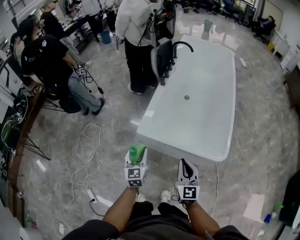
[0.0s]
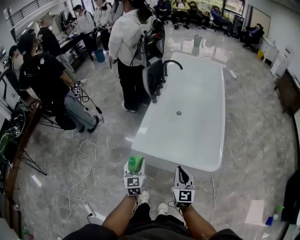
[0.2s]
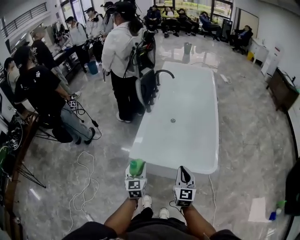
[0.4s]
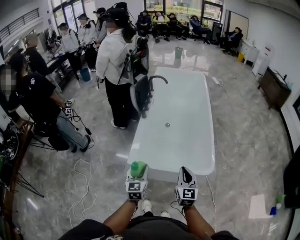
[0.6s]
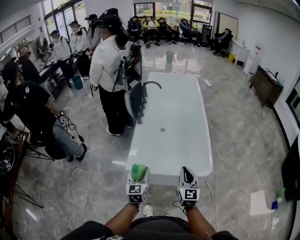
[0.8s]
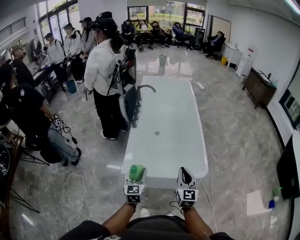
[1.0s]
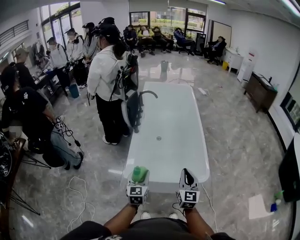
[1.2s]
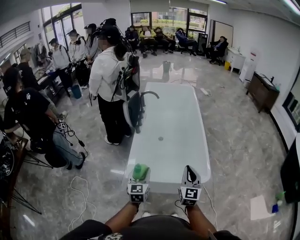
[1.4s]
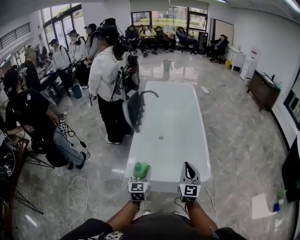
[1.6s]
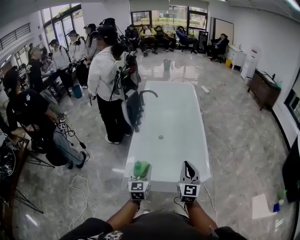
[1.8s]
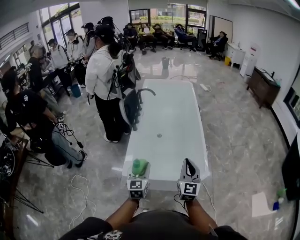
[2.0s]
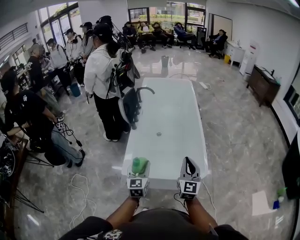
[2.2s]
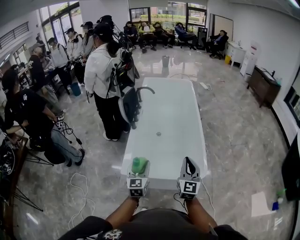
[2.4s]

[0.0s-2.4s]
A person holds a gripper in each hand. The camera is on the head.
0.0s to 1.2s: The right gripper moves upward and to the right, about 10 cm, and rotates some 30 degrees; the left gripper travels upward, to the right and forward by approximately 15 cm, and changes its angle by about 20 degrees.
1.2s to 2.4s: Both grippers move to the right, roughly 5 cm.

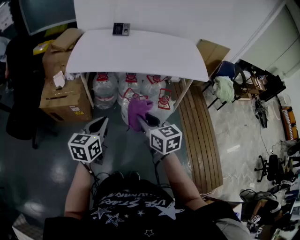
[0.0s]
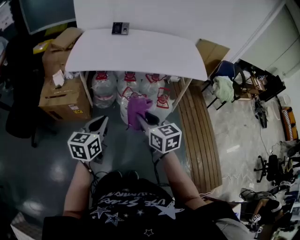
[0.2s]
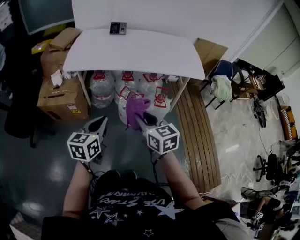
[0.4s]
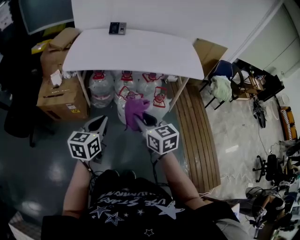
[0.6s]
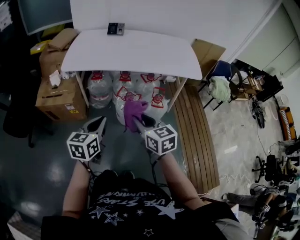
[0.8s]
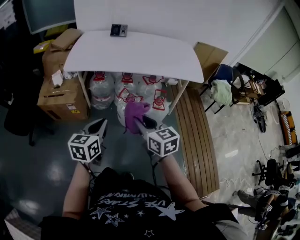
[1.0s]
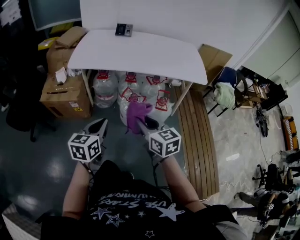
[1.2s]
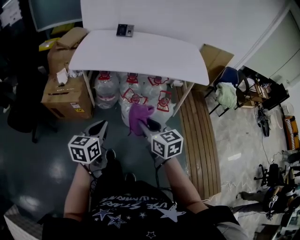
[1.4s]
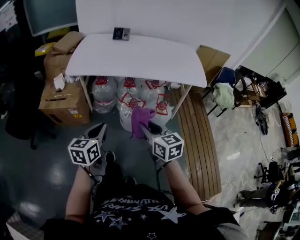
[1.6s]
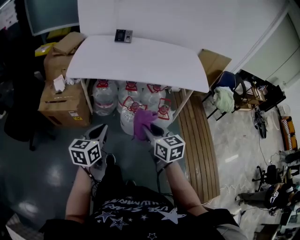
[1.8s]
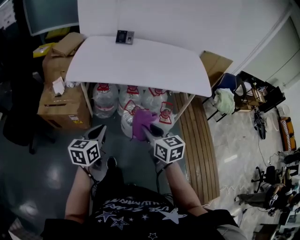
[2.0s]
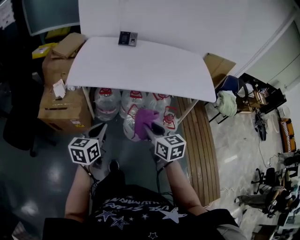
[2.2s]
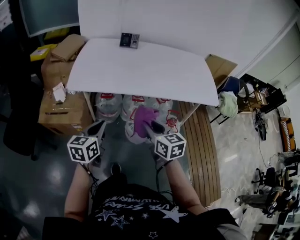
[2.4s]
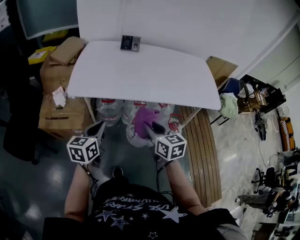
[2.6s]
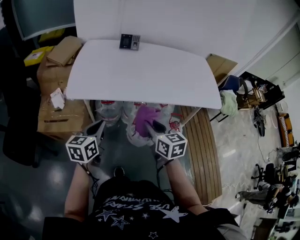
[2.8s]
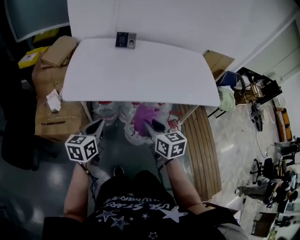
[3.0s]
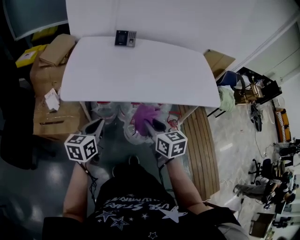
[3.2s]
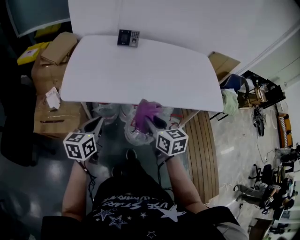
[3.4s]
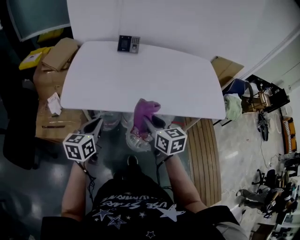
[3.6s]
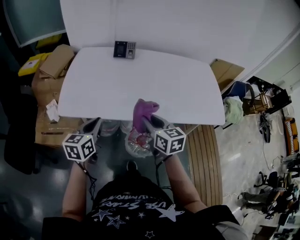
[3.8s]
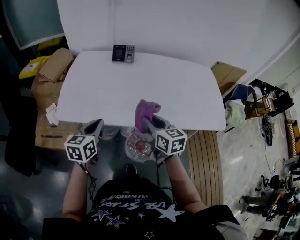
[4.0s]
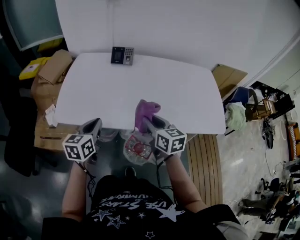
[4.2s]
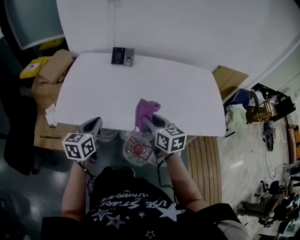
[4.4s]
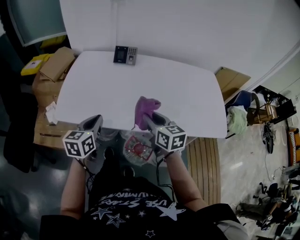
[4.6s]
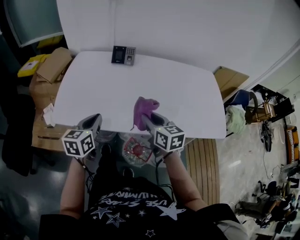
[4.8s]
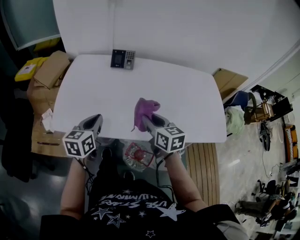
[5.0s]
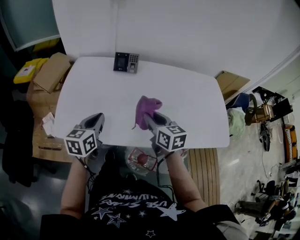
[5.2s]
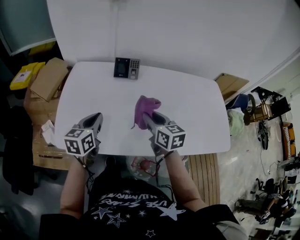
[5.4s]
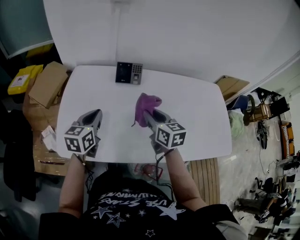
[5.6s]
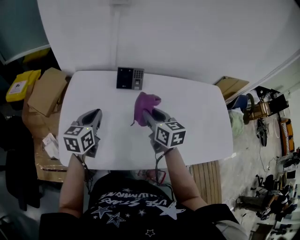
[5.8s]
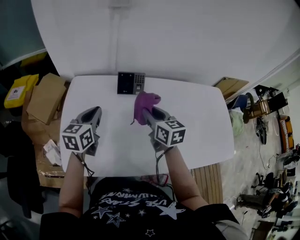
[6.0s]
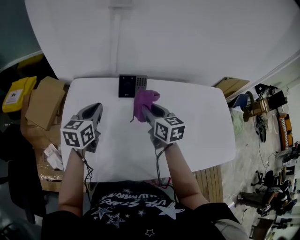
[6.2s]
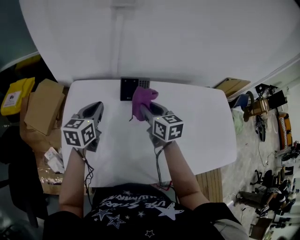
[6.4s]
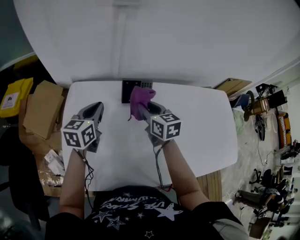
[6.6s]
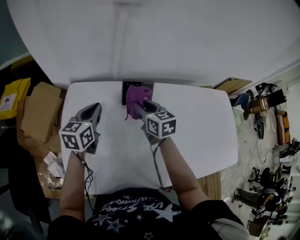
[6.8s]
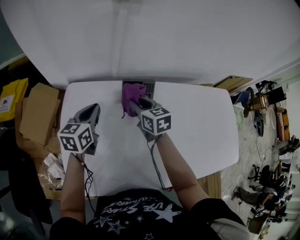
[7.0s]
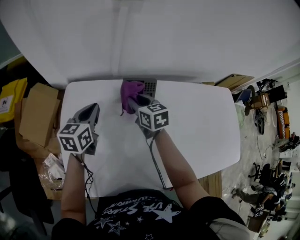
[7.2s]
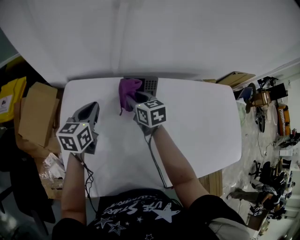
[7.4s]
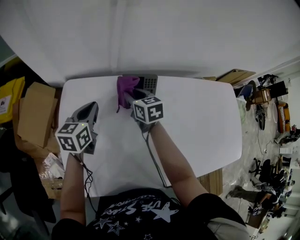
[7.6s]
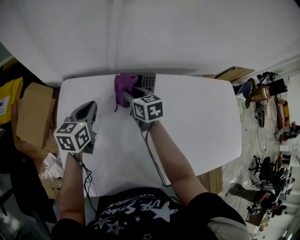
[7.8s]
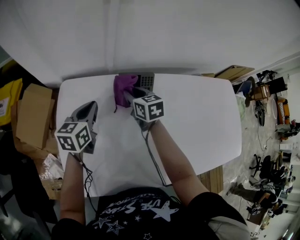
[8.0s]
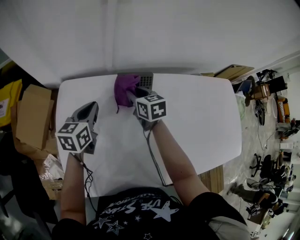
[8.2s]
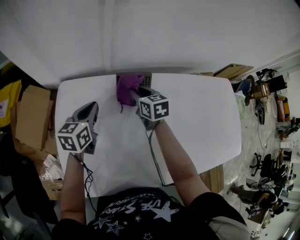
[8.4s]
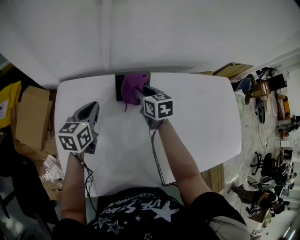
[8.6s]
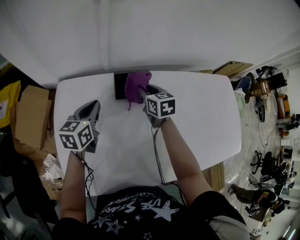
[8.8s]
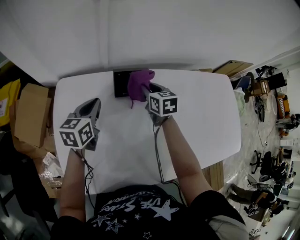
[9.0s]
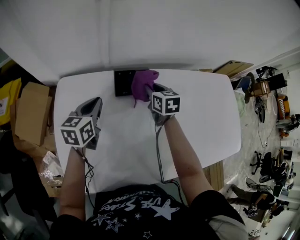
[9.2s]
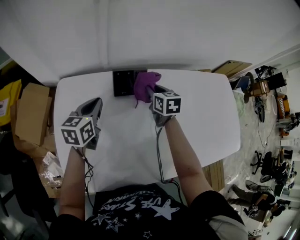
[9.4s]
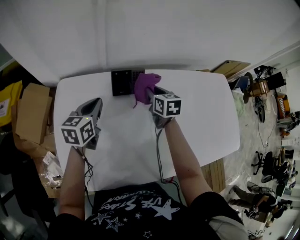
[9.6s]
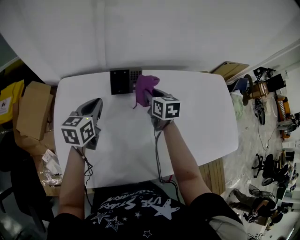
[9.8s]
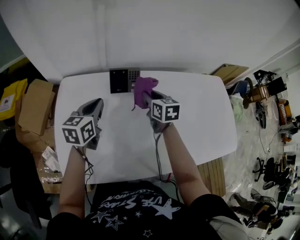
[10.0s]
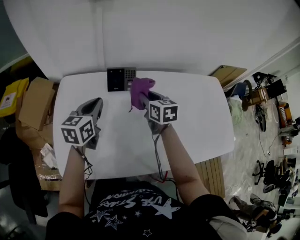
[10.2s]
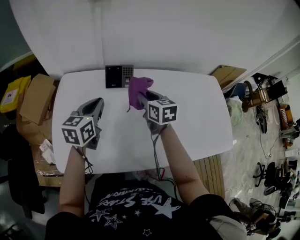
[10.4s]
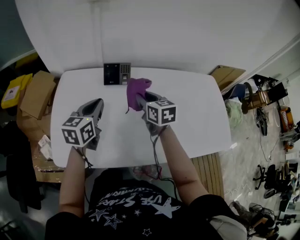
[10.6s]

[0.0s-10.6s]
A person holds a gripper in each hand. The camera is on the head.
0.0s to 1.6s: The grippers stay close to where they were, moving slightly.
1.6s to 3.0s: The right gripper shifts approximately 25 cm forward. Meanwhile the left gripper shifts about 30 cm forward and to the left.
3.0s to 4.6s: The two grippers go about 20 cm forward and to the right.
4.6s to 6.0s: Both grippers travel together forward, approximately 30 cm.
6.0s to 7.6s: The left gripper goes roughly 15 cm forward and downward. Meanwhile the right gripper heads forward, downward and to the left, covering some 25 cm.
7.6s to 9.0s: The right gripper is displaced to the right by approximately 10 cm. The left gripper goes some 5 cm to the right.
9.0s to 10.6s: The right gripper moves backward, upward and to the right, about 20 cm. Meanwhile the left gripper is displaced backward, to the right and upward by approximately 20 cm.

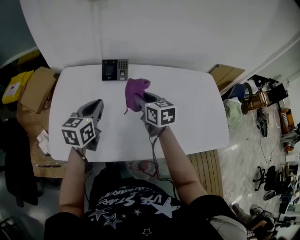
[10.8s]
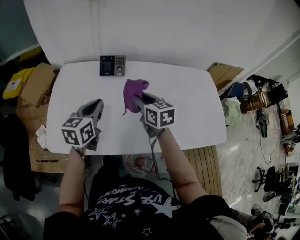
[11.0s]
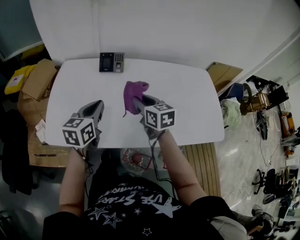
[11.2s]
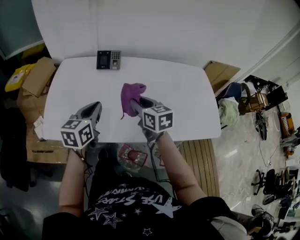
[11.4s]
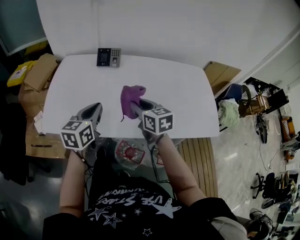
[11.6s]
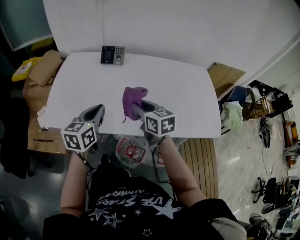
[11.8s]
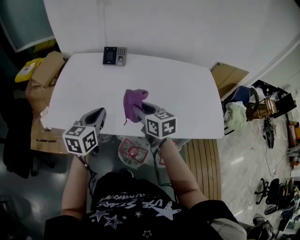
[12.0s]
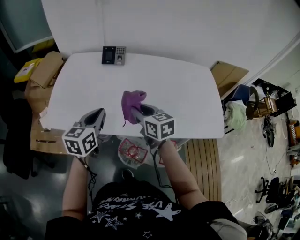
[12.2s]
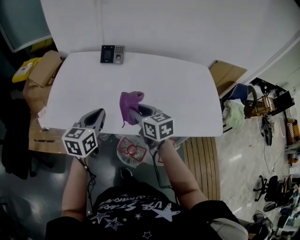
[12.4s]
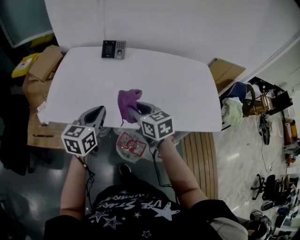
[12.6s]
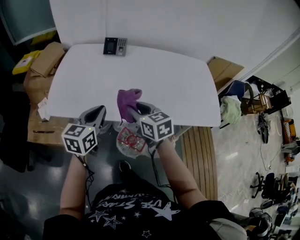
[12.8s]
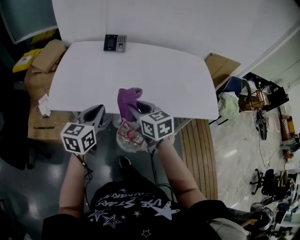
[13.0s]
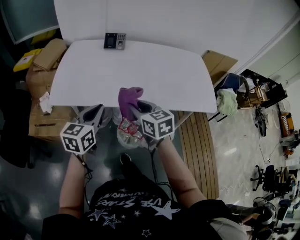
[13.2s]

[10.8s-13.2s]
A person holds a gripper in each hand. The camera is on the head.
10.8s to 12.0s: The grippers both shift backward by roughly 20 cm.
12.0s to 13.2s: The left gripper shifts some 15 cm backward, while the right gripper goes about 15 cm backward and to the left.

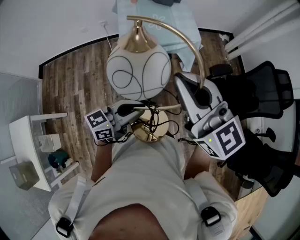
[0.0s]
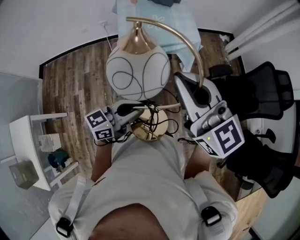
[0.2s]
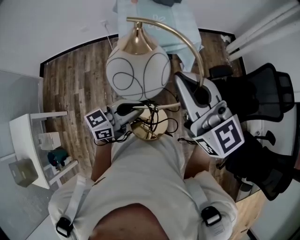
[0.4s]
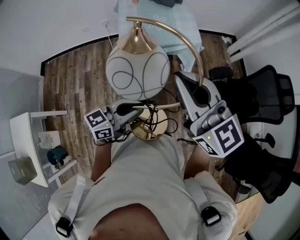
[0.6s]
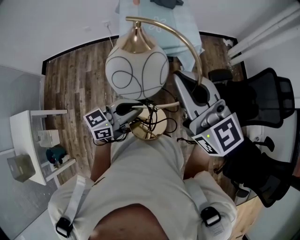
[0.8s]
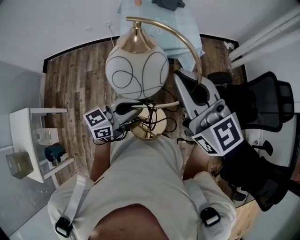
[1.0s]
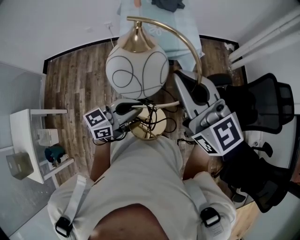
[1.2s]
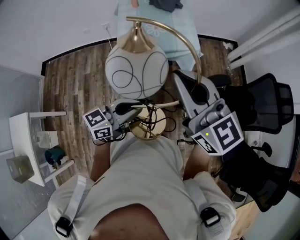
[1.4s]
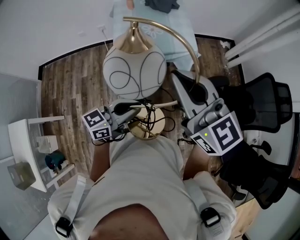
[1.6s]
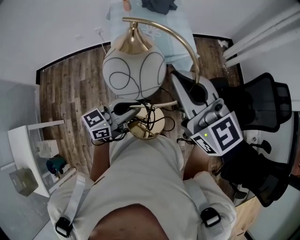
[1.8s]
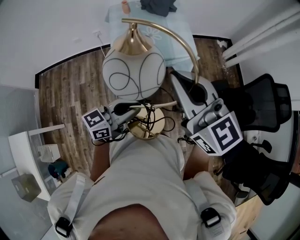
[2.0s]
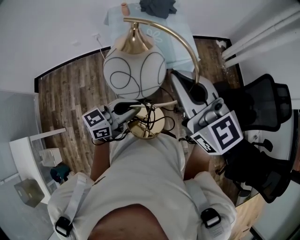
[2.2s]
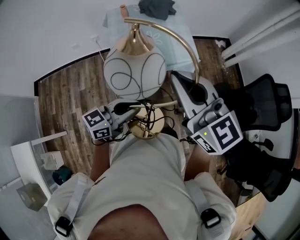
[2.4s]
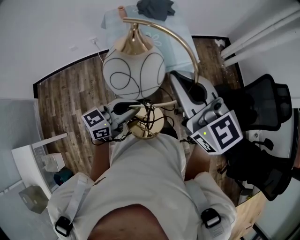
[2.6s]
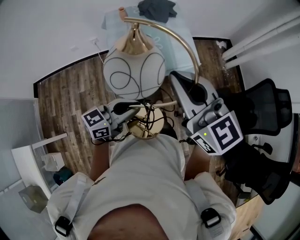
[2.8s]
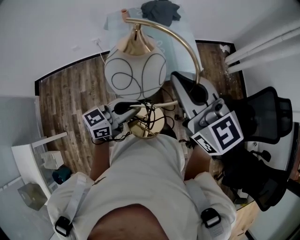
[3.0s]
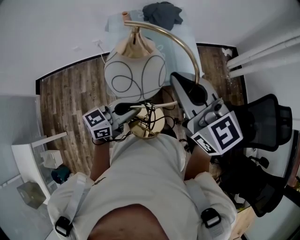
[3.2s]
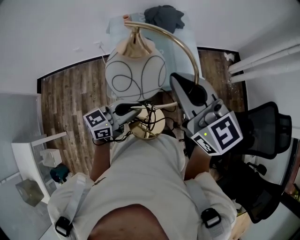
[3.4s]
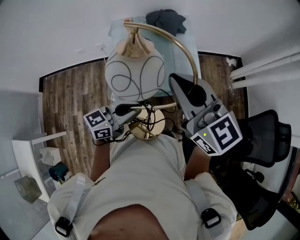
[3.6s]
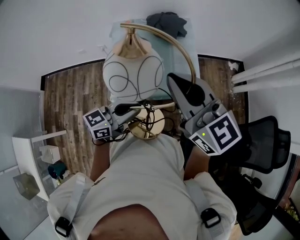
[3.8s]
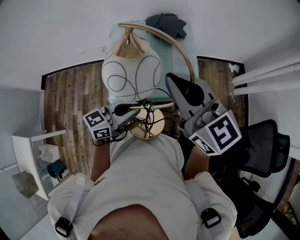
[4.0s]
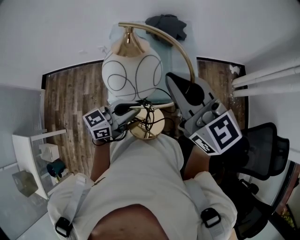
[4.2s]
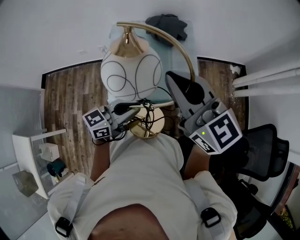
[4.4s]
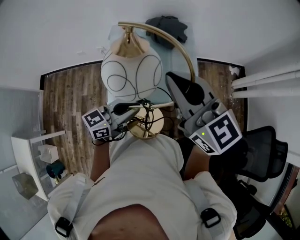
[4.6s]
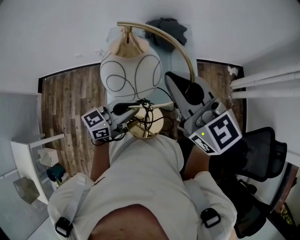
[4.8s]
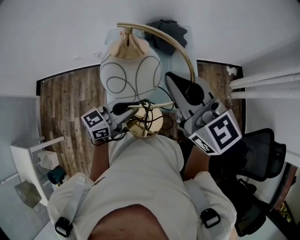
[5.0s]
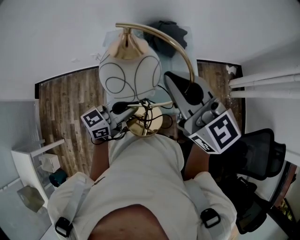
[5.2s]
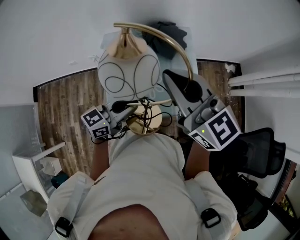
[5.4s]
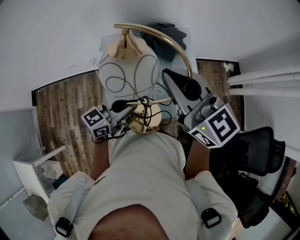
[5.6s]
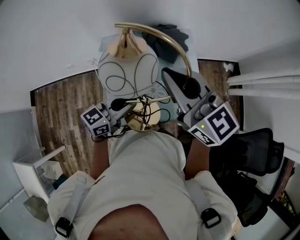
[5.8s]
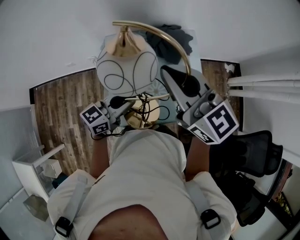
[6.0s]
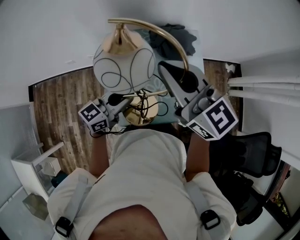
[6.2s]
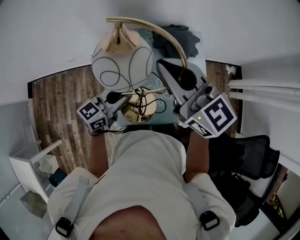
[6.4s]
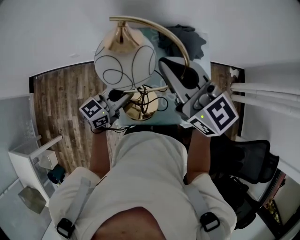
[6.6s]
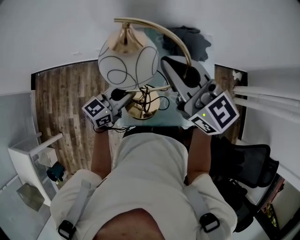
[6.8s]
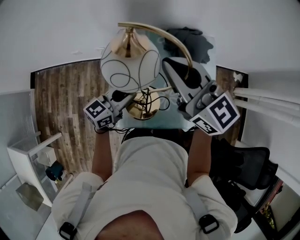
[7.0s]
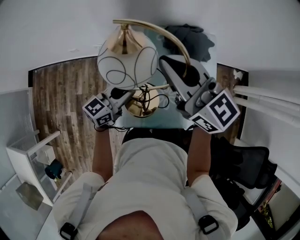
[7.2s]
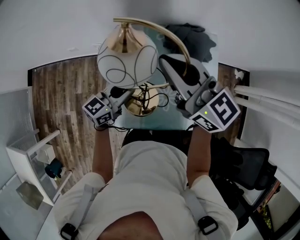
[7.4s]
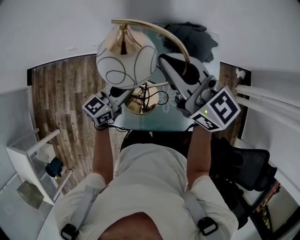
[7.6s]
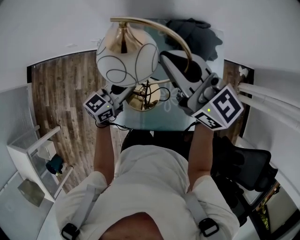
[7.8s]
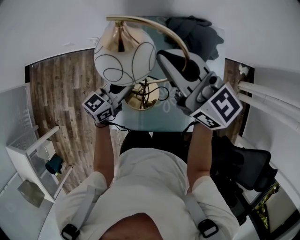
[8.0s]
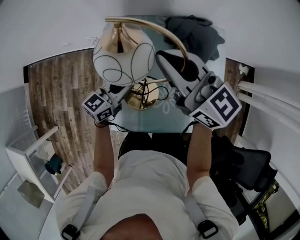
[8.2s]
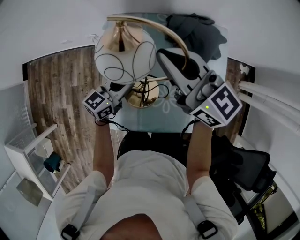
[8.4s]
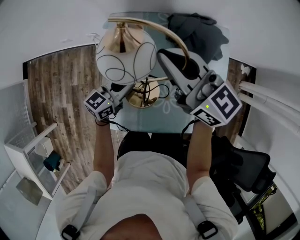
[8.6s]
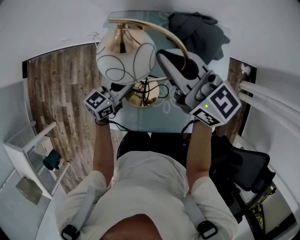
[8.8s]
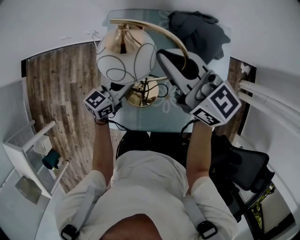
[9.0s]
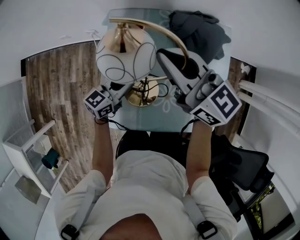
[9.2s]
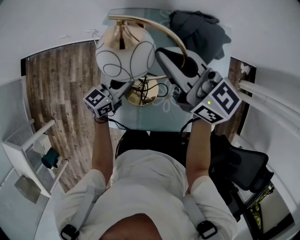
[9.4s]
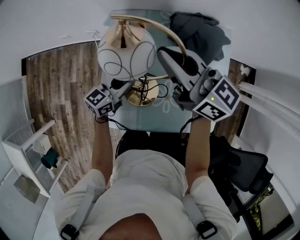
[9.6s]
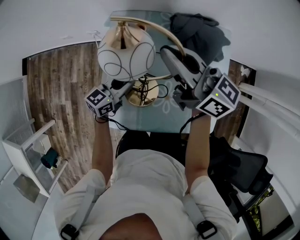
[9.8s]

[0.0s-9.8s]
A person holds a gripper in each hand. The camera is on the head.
0.0s to 1.4s: Both grippers travel together forward, roughly 5 cm.
1.4s to 2.8s: The two grippers go some 20 cm forward and to the left.
2.8s to 4.2s: Both grippers travel together forward, approximately 20 cm.
4.2s to 5.6s: Both grippers move forward and to the left, about 20 cm.
5.6s to 7.0s: The right gripper is displaced to the left and forward by about 15 cm; the left gripper heads to the left, forward and downward, covering roughly 15 cm.
7.0s to 8.4s: The grippers both shift downward and forward by roughly 15 cm.
8.4s to 9.8s: The grippers stay close to where they were, moving slightly.
